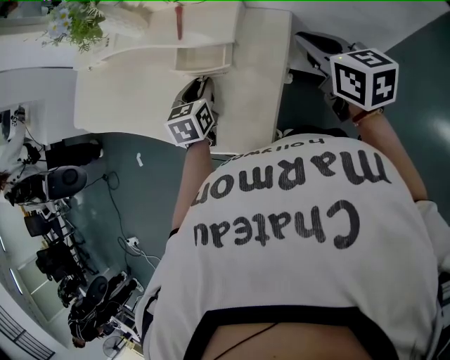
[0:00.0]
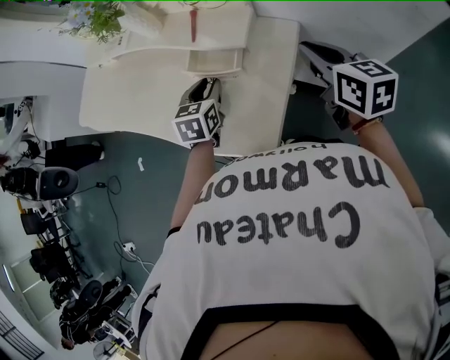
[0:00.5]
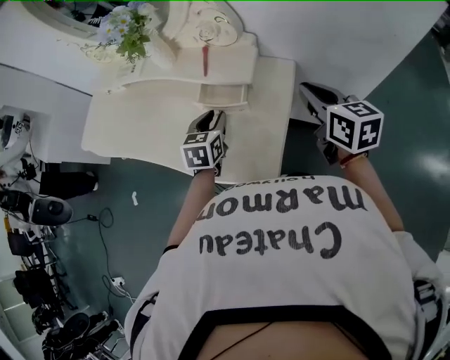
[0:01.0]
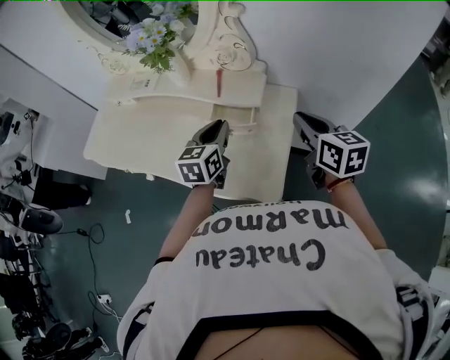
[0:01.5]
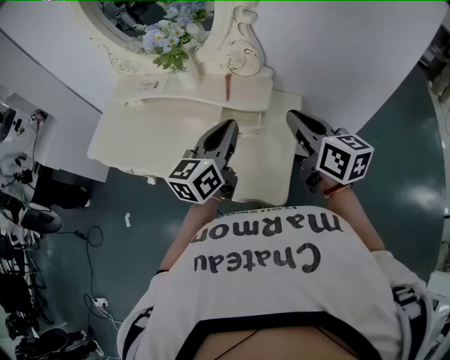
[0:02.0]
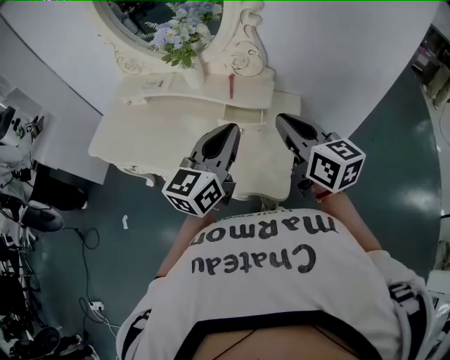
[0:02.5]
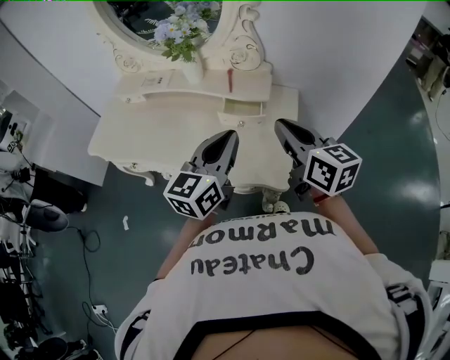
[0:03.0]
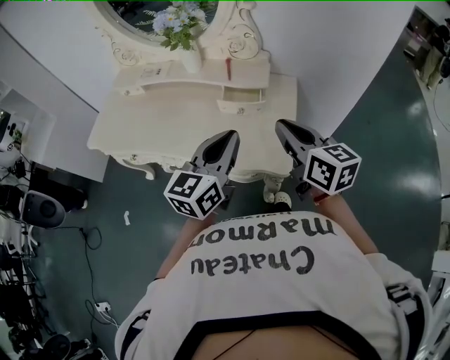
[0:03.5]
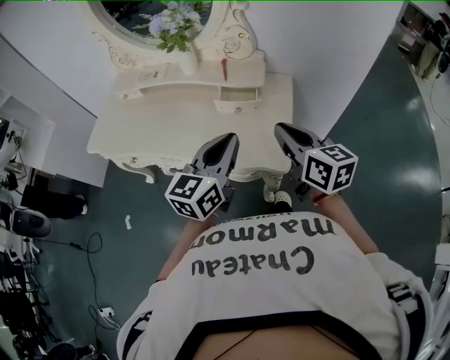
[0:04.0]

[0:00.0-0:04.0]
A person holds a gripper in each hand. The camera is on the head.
0:00.0 to 0:02.0: The left gripper travels upward by some 20 cm, and points its fingers approximately 40 degrees further upward, while the right gripper heads to the left, upward and backward, covering approximately 15 cm.
0:02.0 to 0:04.0: Both grippers move backward, some 15 cm.

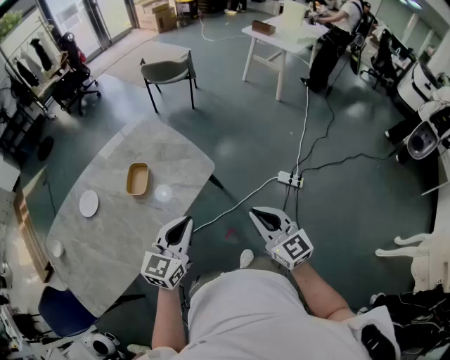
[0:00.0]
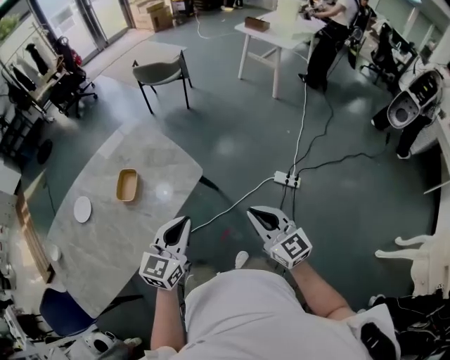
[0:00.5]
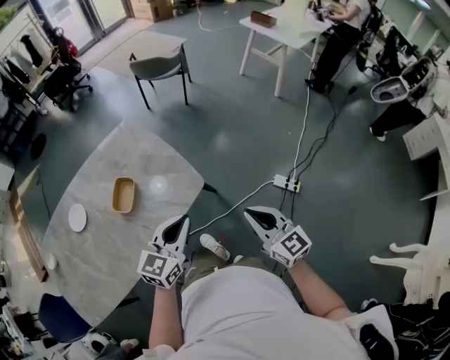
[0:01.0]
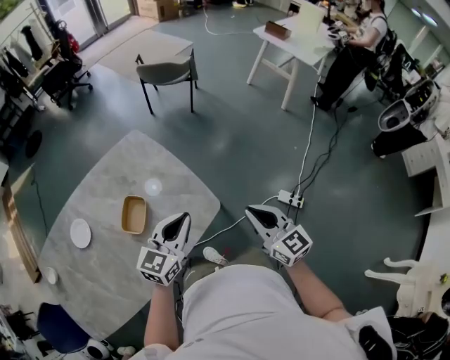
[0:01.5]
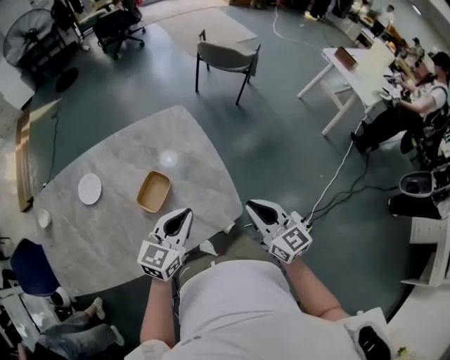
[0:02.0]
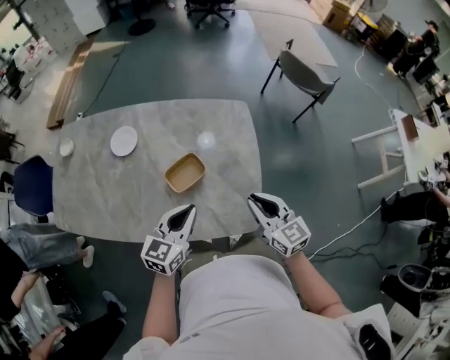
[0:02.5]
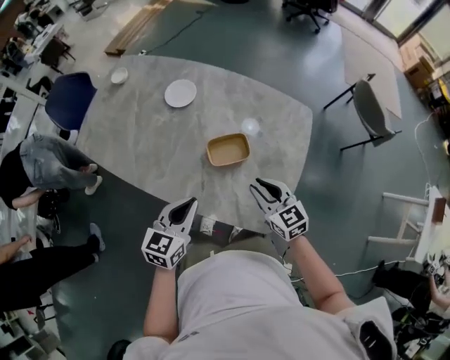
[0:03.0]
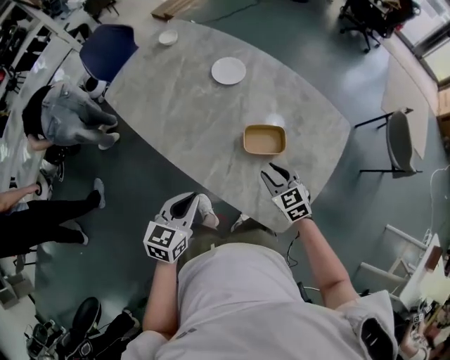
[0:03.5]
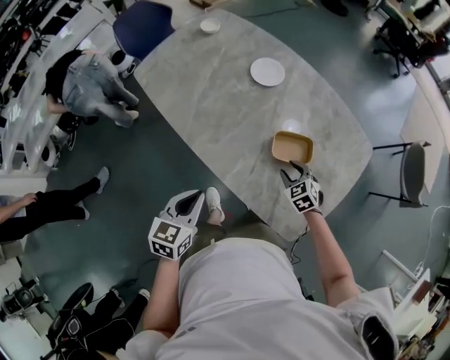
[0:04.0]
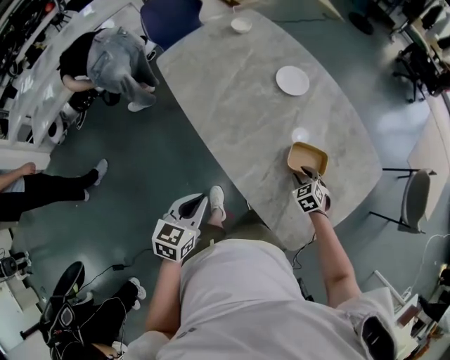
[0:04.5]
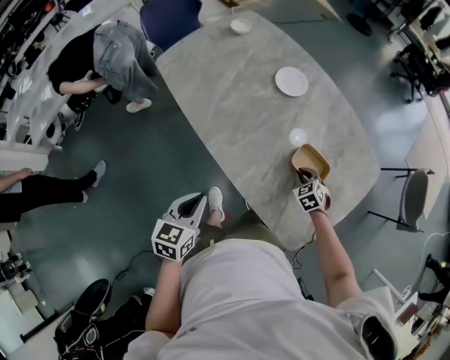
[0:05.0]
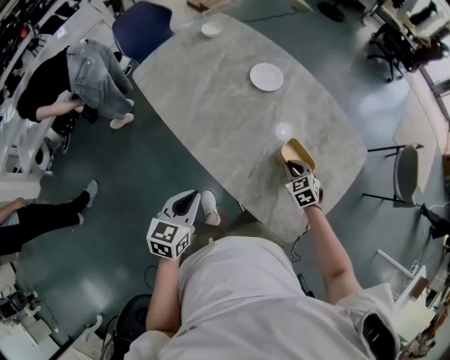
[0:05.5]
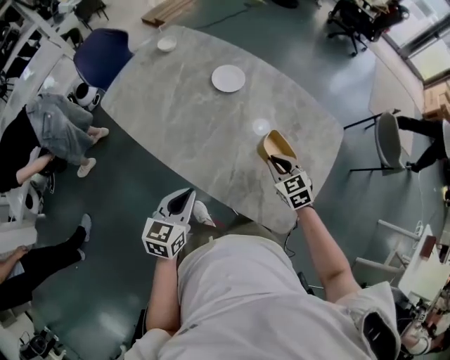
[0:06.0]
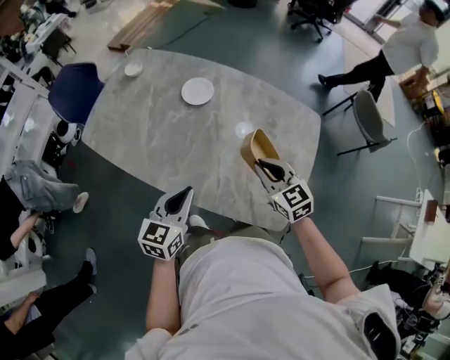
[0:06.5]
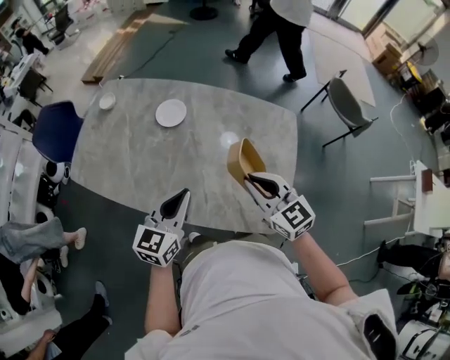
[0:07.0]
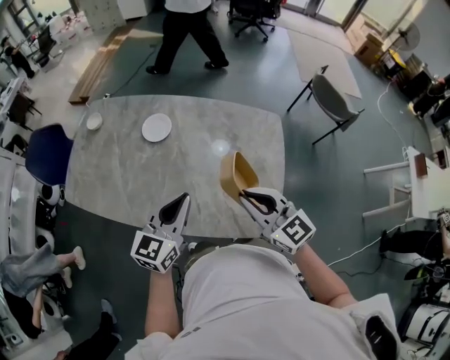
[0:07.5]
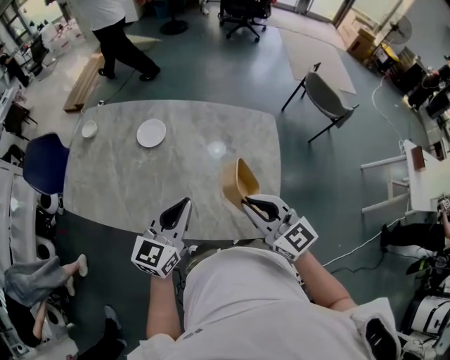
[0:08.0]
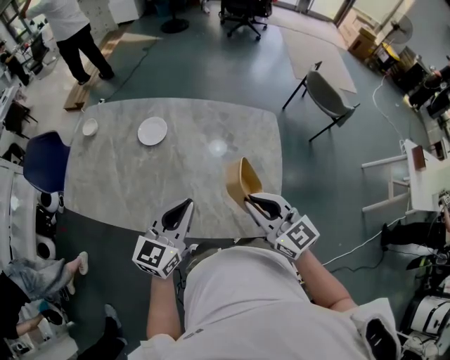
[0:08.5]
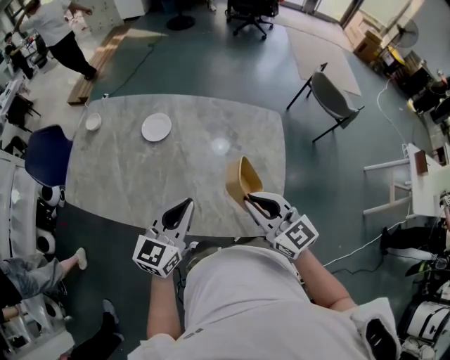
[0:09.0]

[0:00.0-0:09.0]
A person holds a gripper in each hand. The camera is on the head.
0:00.0 to 0:02.0: Both grippers move forward, roughly 30 cm. The right gripper turns by some 20 degrees.
0:02.0 to 0:04.5: The right gripper moves about 50 cm, tips its fingers downward by about 50 degrees, and opens its fingers; the left gripper ends up approximately 35 cm from where it was, and turns by about 80 degrees.
0:04.5 to 0:07.0: The left gripper travels to the right, forward and upward by roughly 25 cm, and swivels some 40 degrees, while the right gripper shifts some 35 cm upward, points its fingers some 40 degrees further upward, and closes.
0:07.0 to 0:09.0: The right gripper ends up roughly 5 cm from where it was, while the left gripper moves some 5 cm.

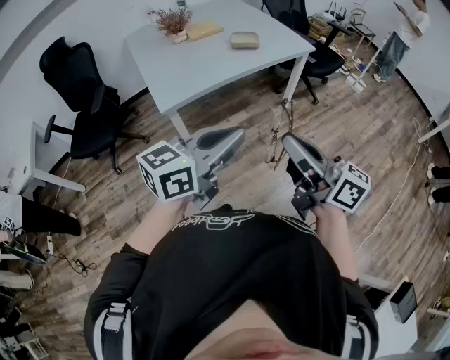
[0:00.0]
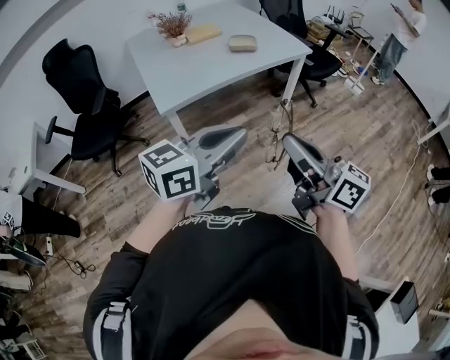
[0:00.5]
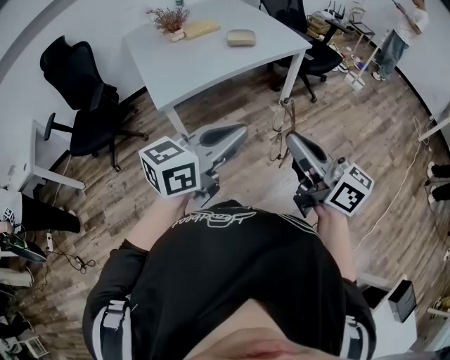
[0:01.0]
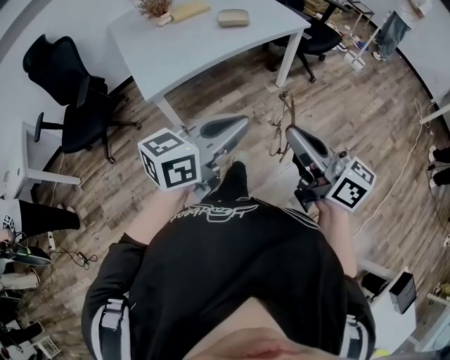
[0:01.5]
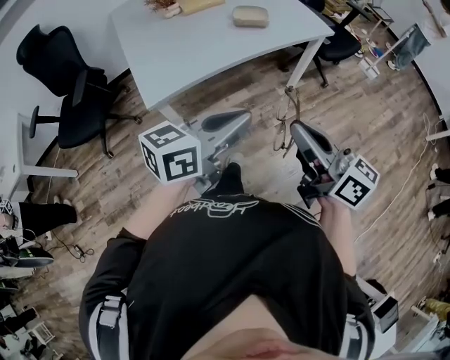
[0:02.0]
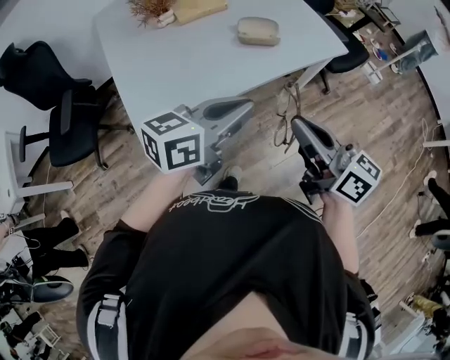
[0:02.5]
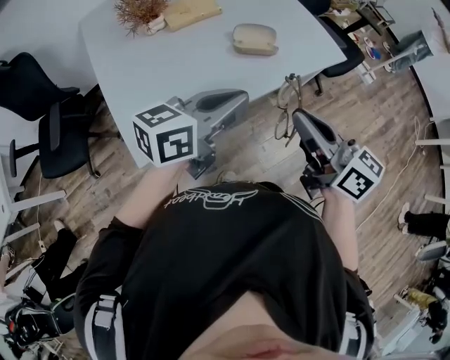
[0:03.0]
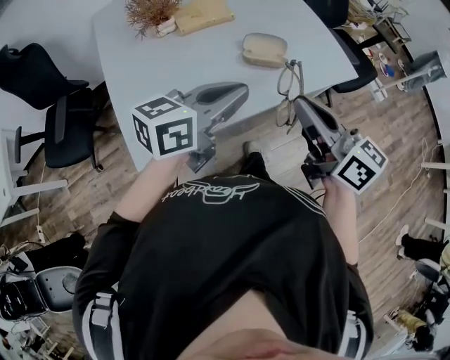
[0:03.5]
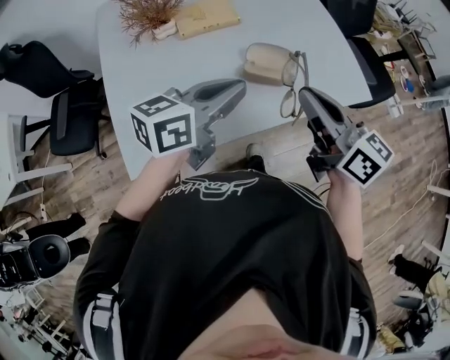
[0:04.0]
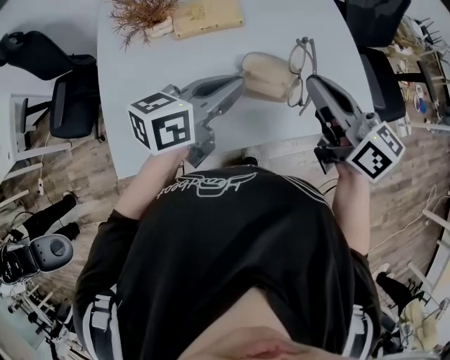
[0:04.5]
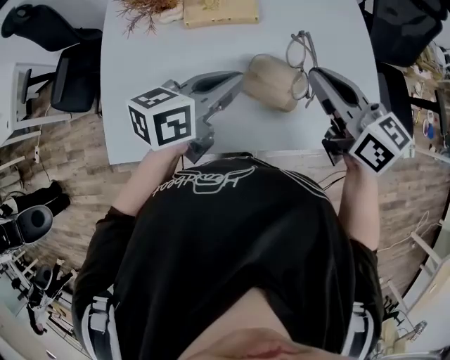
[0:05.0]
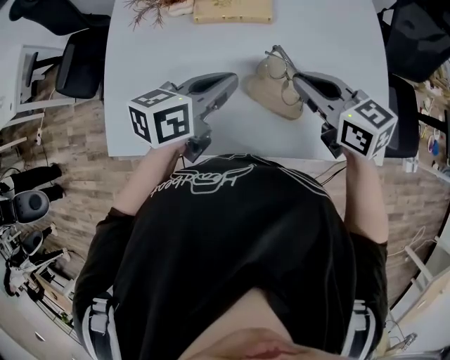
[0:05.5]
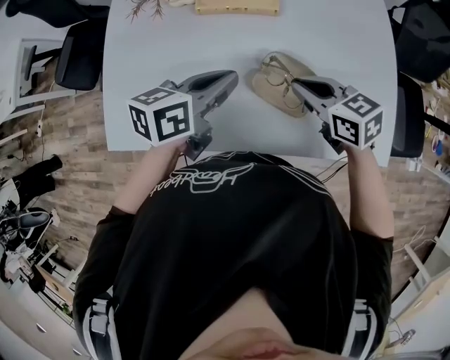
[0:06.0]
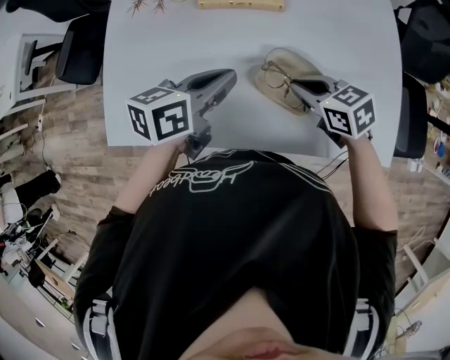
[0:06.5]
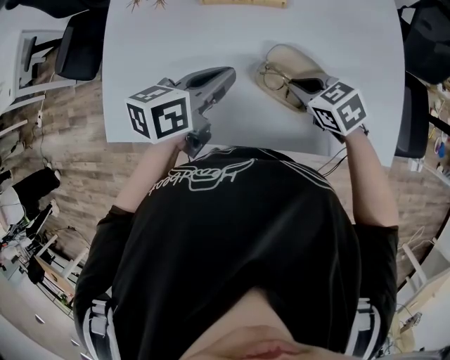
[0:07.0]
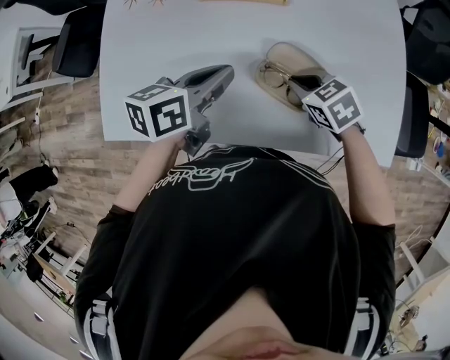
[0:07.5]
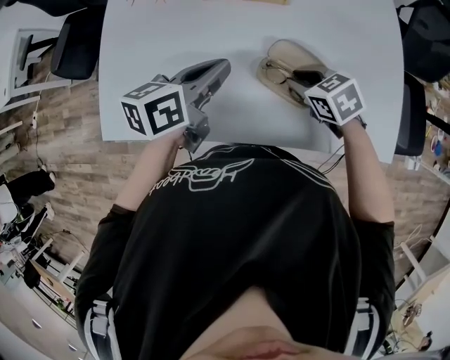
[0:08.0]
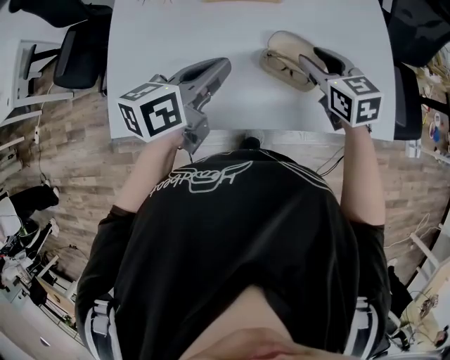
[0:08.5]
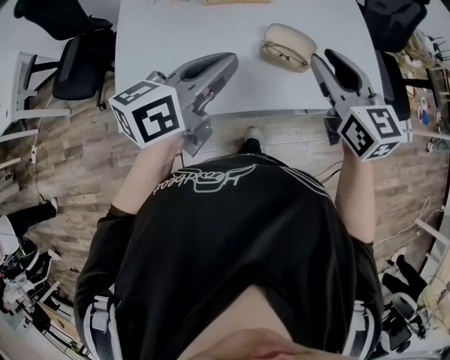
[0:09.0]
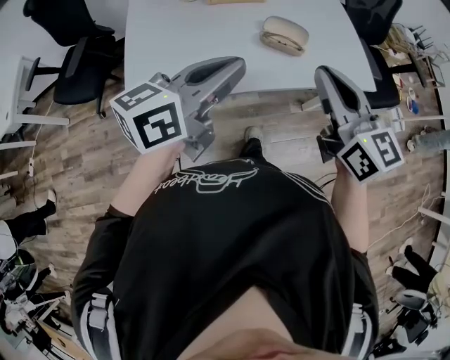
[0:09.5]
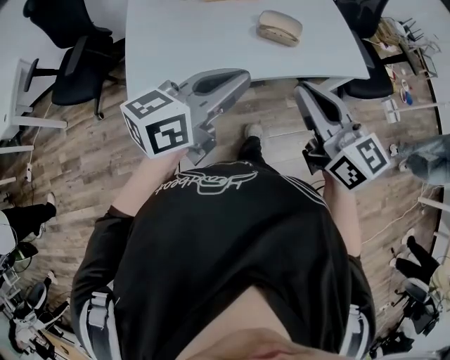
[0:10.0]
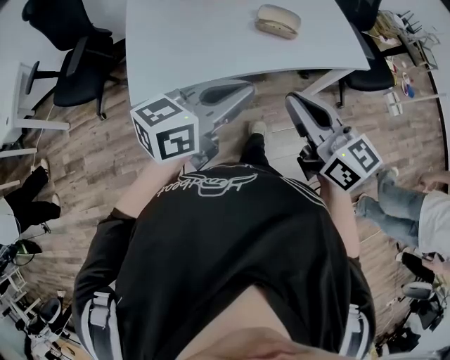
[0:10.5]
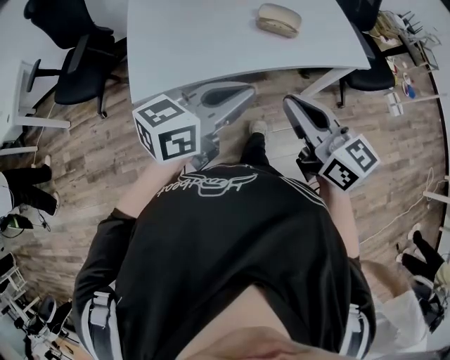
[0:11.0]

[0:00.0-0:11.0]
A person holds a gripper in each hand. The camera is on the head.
0:00.0 to 0:02.0: Both grippers travel together forward, some 15 cm.
0:02.0 to 0:03.5: The two grippers go about 35 cm forward.
0:03.5 to 0:05.5: The right gripper shifts by approximately 35 cm, and swivels some 40 degrees, while the left gripper shifts by about 25 cm, and swivels some 40 degrees.
0:05.5 to 0:07.5: The right gripper shifts roughly 15 cm downward, and tips its fingers downward by roughly 30 degrees, while the left gripper shifts by approximately 5 cm.
0:07.5 to 0:09.0: The left gripper travels upward by approximately 15 cm, and rotates about 20 degrees. Meanwhile the right gripper goes approximately 25 cm upward, tips its fingers upward by approximately 40 degrees, and opens its fingers.
0:09.0 to 0:11.0: Both grippers move backward, approximately 25 cm. The right gripper closes.

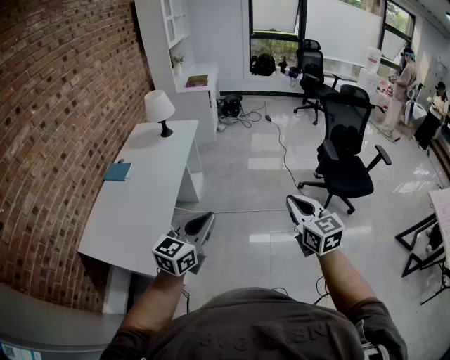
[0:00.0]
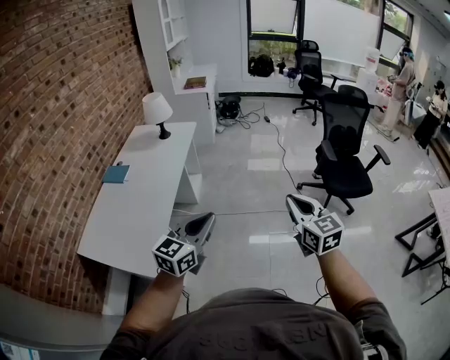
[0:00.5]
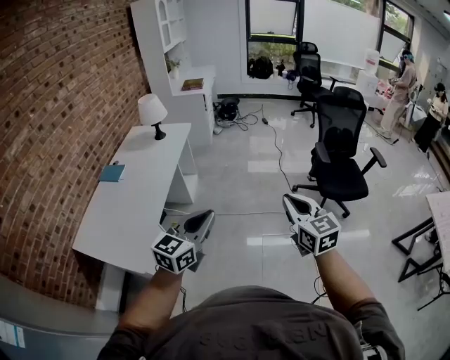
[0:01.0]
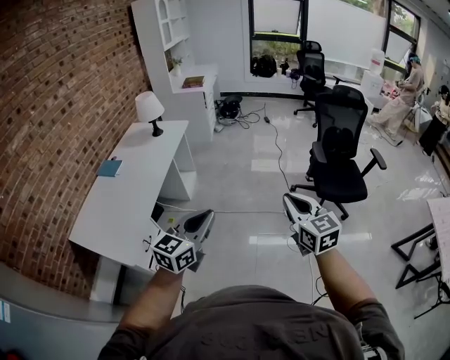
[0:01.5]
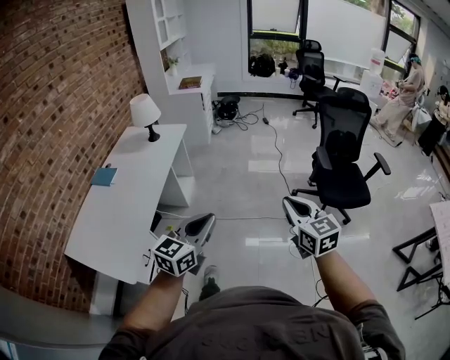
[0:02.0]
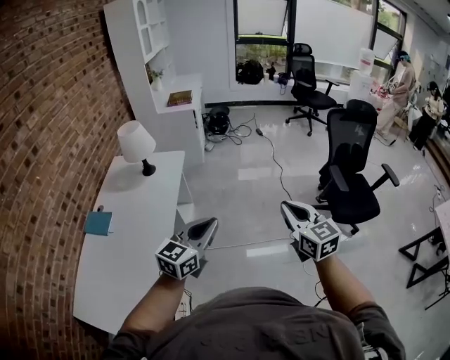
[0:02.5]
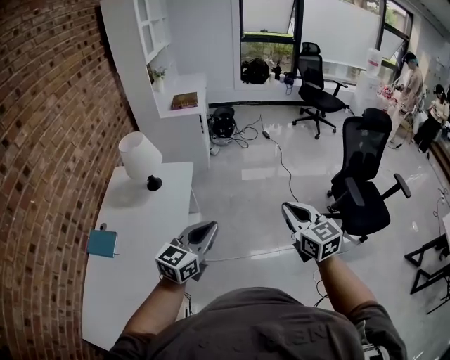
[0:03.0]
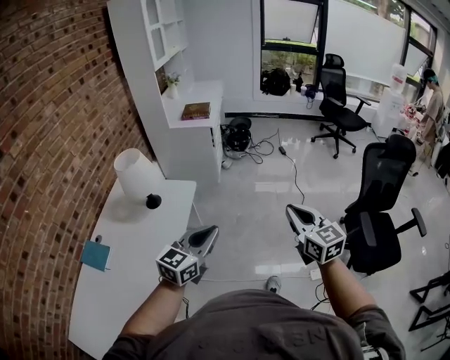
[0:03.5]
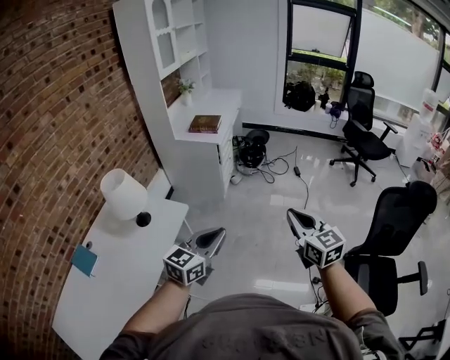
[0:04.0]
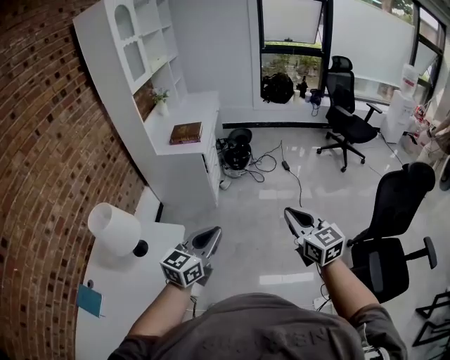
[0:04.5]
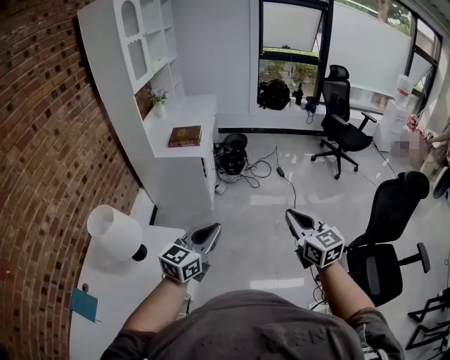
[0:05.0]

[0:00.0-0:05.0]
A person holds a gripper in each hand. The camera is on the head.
0:00.0 to 0:02.5: The grippers both shift forward by roughly 30 cm.
0:02.5 to 0:05.0: The two grippers travel together, forward, some 60 cm.
